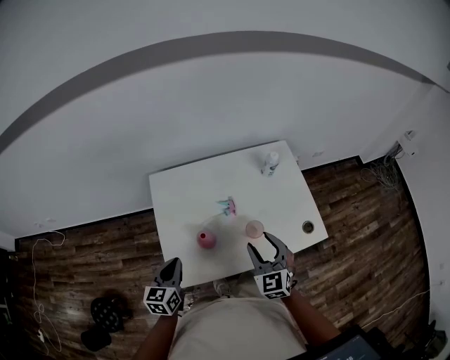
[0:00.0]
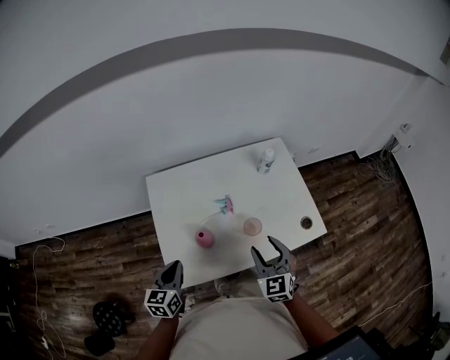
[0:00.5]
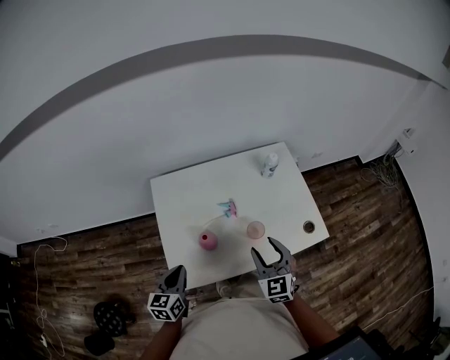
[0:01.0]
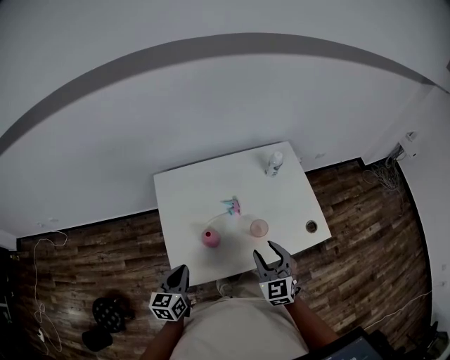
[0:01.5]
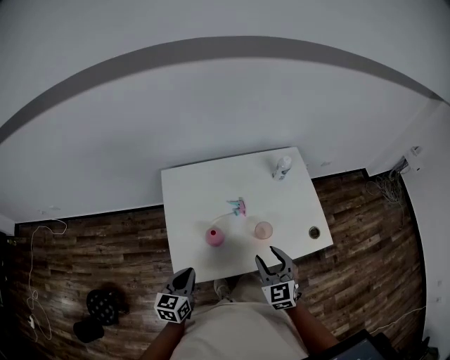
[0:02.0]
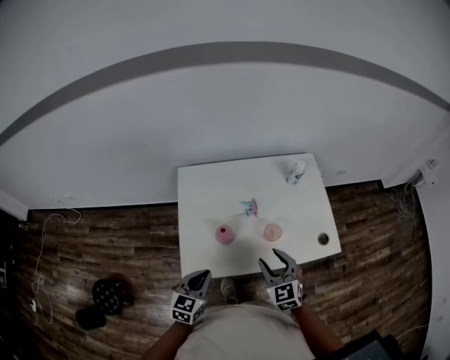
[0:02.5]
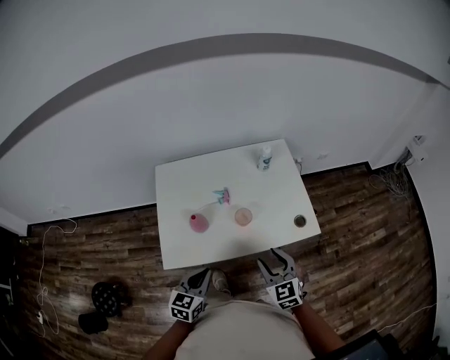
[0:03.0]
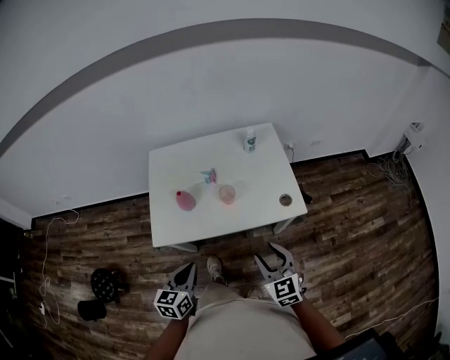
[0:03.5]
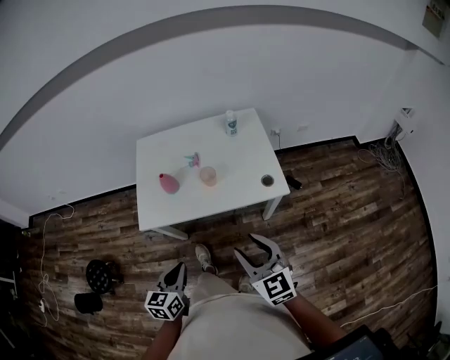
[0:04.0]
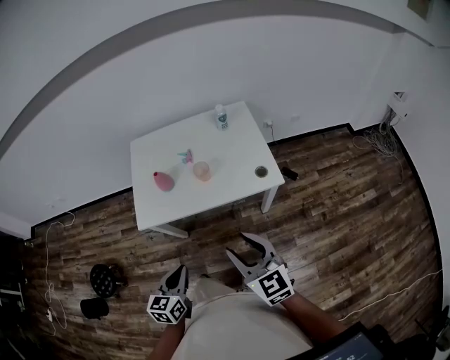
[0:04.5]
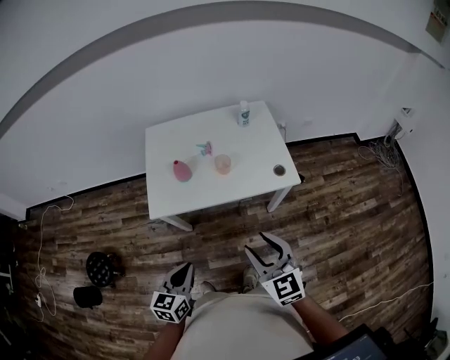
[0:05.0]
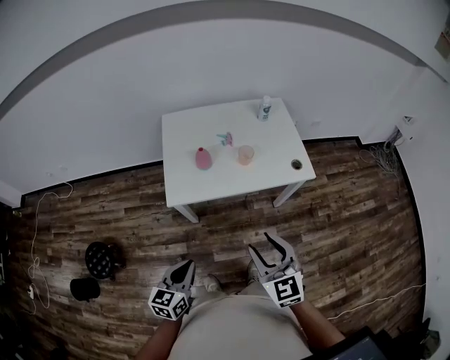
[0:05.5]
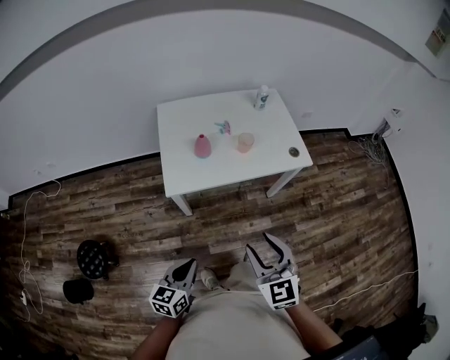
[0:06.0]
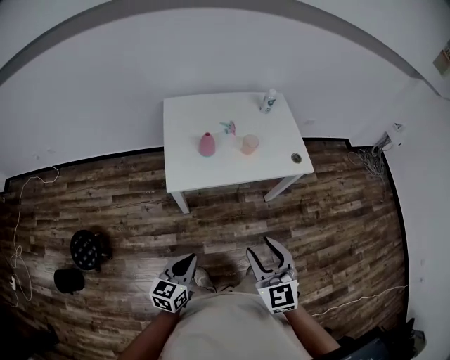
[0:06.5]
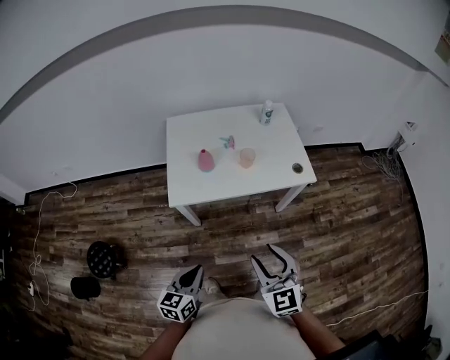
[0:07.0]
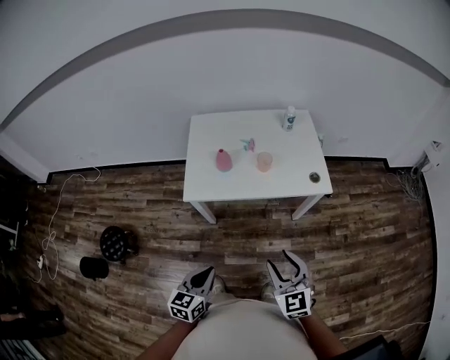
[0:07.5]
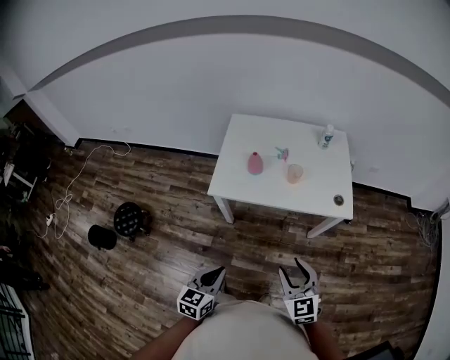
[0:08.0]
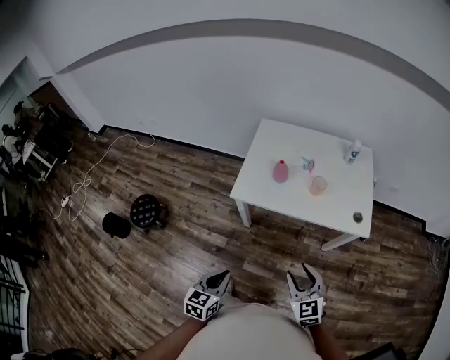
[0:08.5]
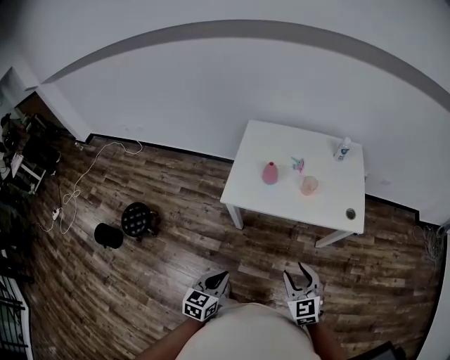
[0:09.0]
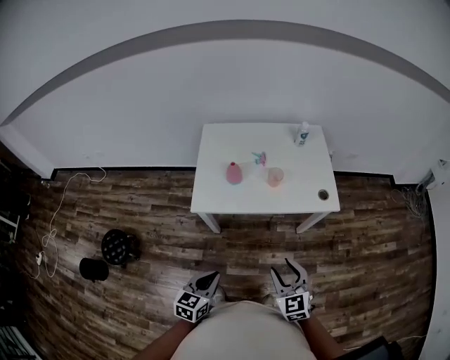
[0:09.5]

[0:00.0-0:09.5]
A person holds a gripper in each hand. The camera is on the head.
0:00.0 to 0:02.0: The left gripper moves backward, about 5 cm.
0:02.0 to 0:04.0: The grippers both shift backward and to the right by roughly 35 cm. The right gripper rotates some 20 degrees.
0:04.0 to 0:05.5: Both grippers travel together to the left and backward, some 20 cm.
0:05.5 to 0:07.5: The grippers both shift to the right by roughly 10 cm.
0:07.5 to 0:09.5: The right gripper shifts by about 5 cm.

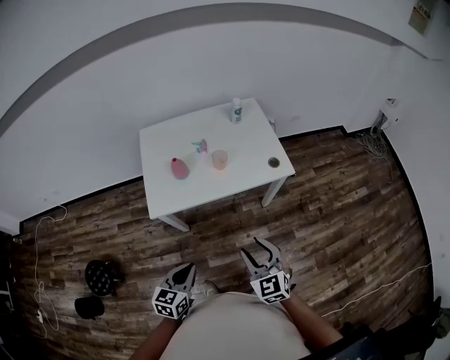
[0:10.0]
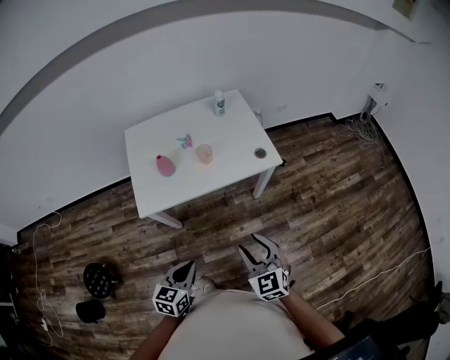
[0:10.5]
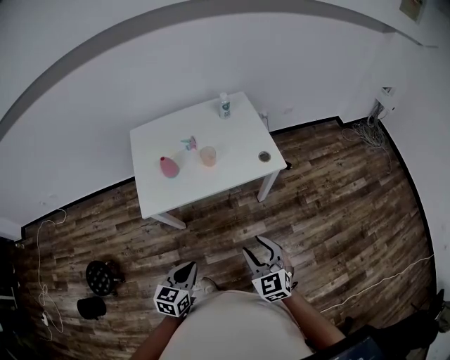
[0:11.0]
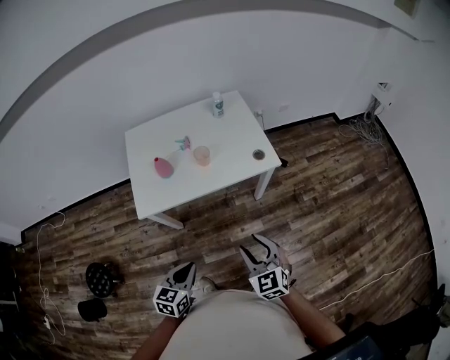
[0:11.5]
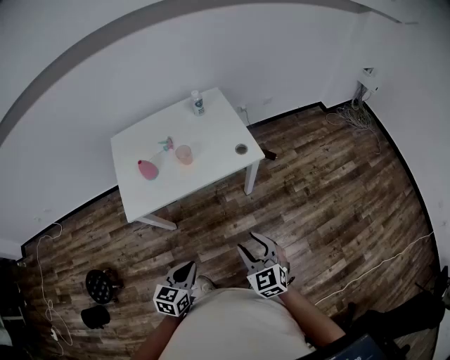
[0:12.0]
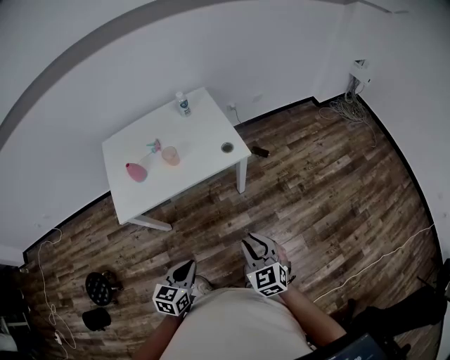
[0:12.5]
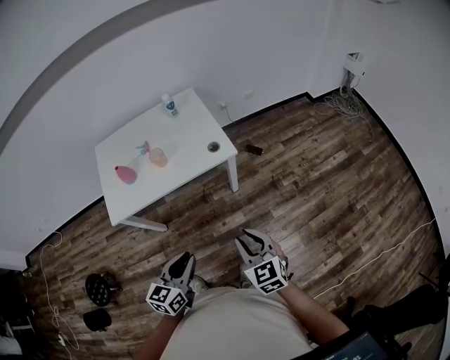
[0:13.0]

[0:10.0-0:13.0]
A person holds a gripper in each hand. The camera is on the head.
0:10.0 to 0:11.5: Both grippers move to the right, roughly 5 cm.
0:11.5 to 0:13.0: Both grippers travel together to the right, roughly 20 cm.

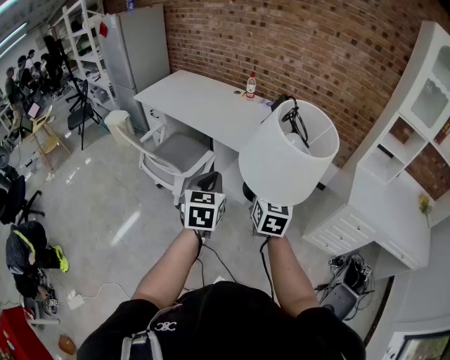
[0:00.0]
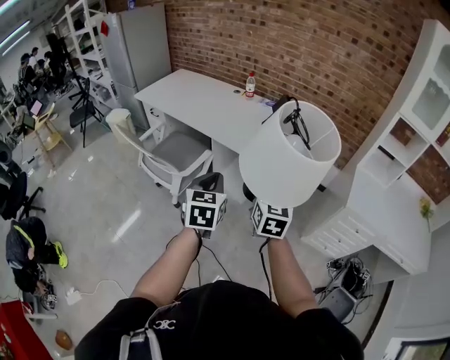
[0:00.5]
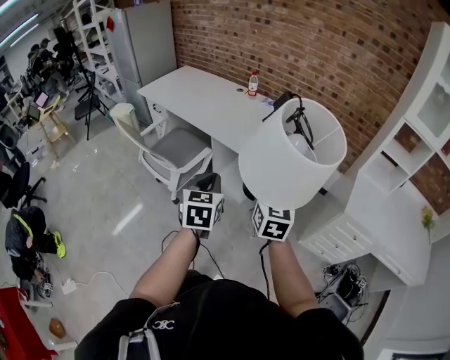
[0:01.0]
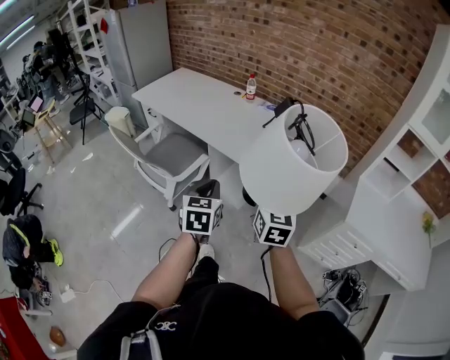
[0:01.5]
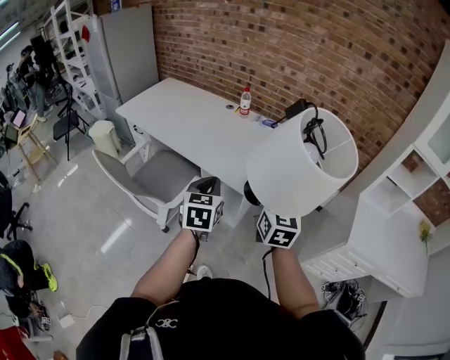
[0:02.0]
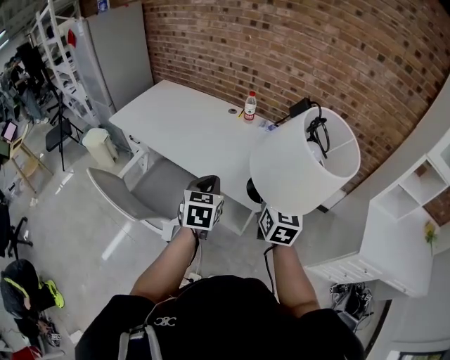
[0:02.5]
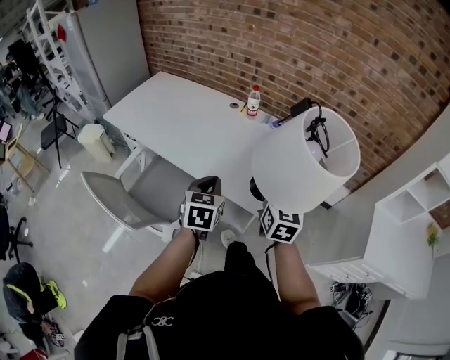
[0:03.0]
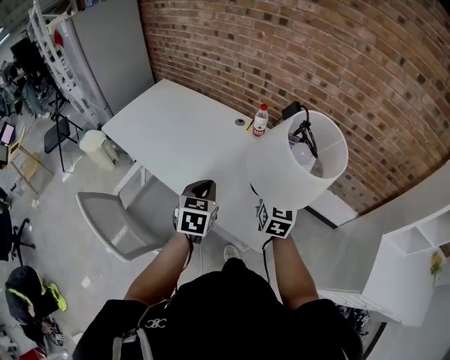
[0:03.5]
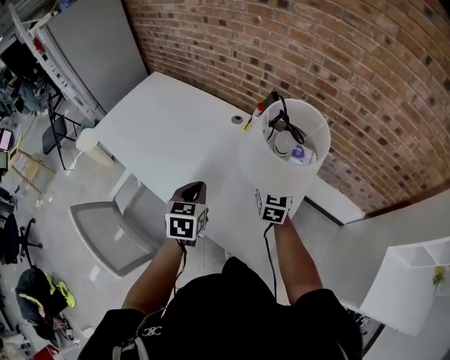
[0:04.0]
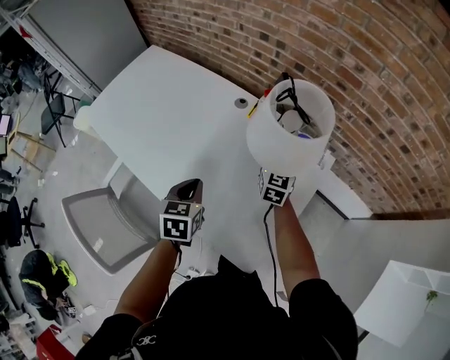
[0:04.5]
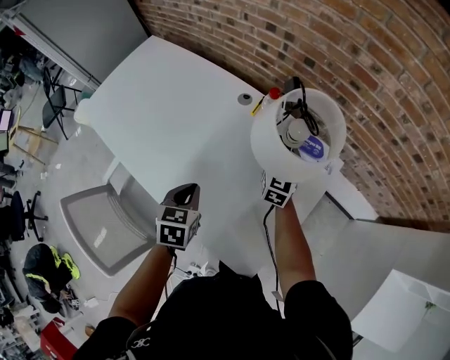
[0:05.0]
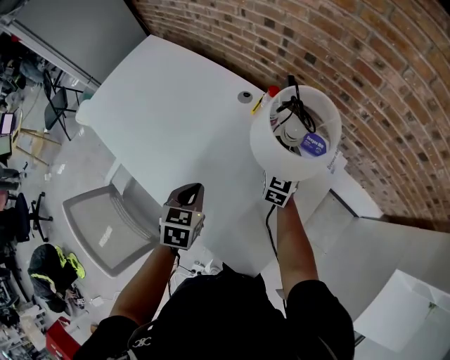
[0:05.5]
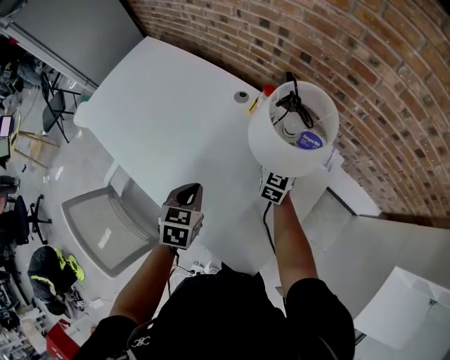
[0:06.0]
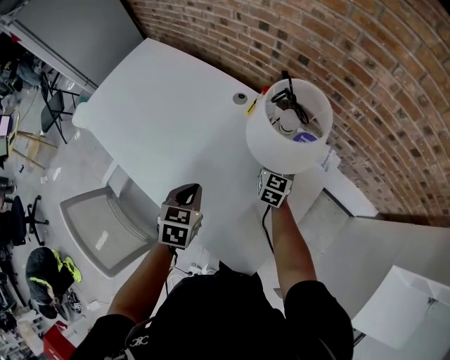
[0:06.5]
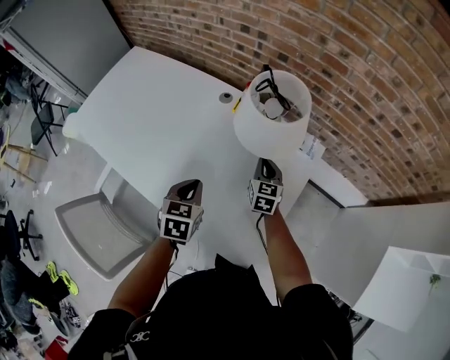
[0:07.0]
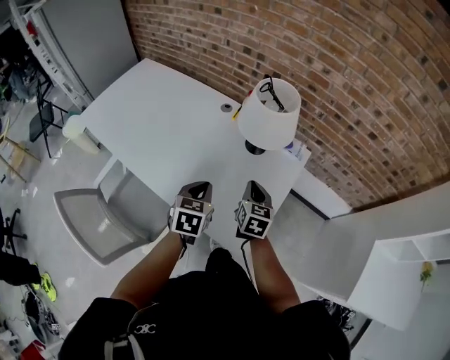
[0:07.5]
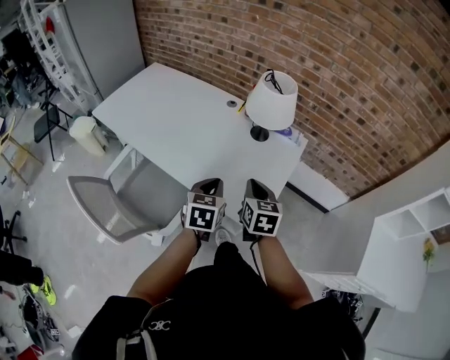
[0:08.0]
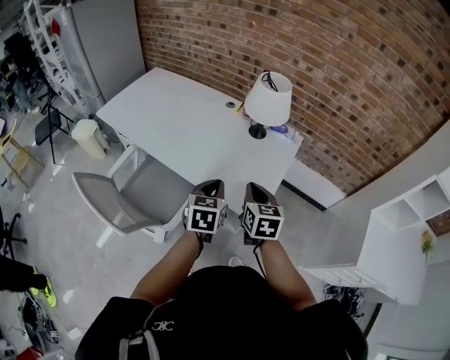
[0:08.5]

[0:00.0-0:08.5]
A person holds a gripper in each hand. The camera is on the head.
0:00.0 to 0:02.0: The grippers both shift forward by roughly 20 cm.
0:02.0 to 0:04.0: The two grippers go approximately 40 cm forward.
0:04.0 to 0:06.5: The right gripper travels downward and forward by approximately 20 cm; the left gripper goes some 10 cm downward and forward.
0:06.5 to 0:08.5: The left gripper heads backward and upward, covering some 25 cm, while the right gripper heads backward and upward, covering approximately 50 cm, and closes.

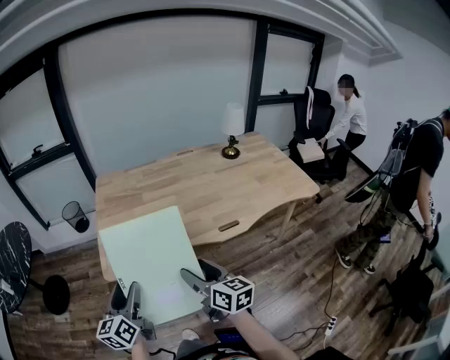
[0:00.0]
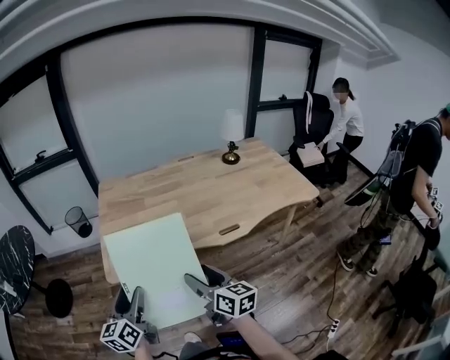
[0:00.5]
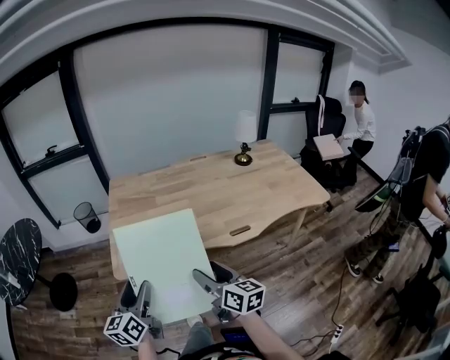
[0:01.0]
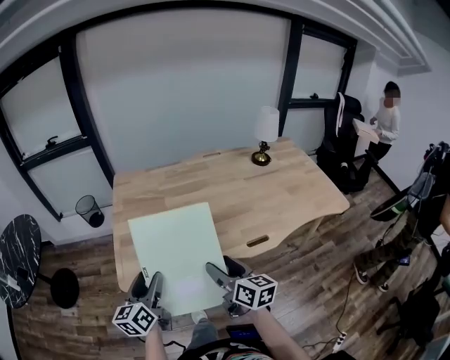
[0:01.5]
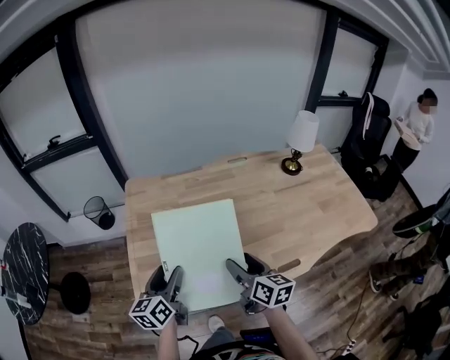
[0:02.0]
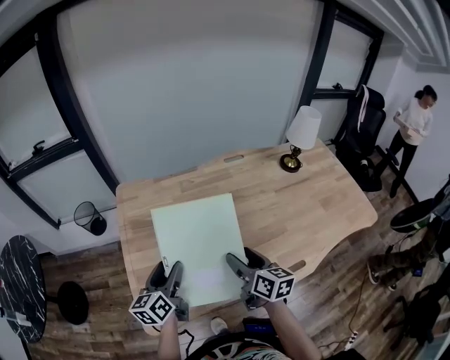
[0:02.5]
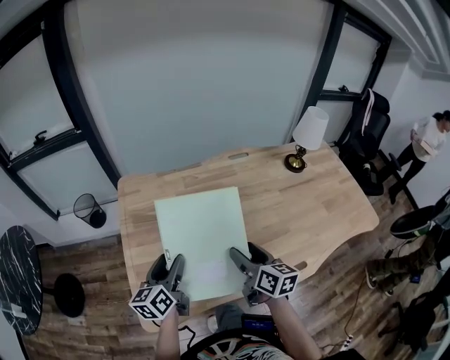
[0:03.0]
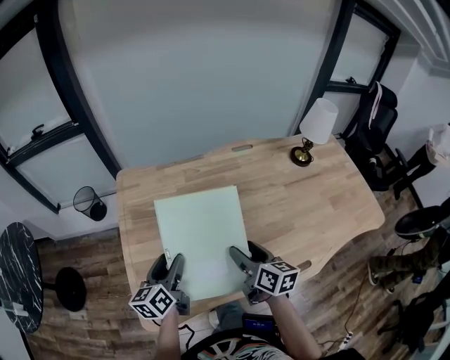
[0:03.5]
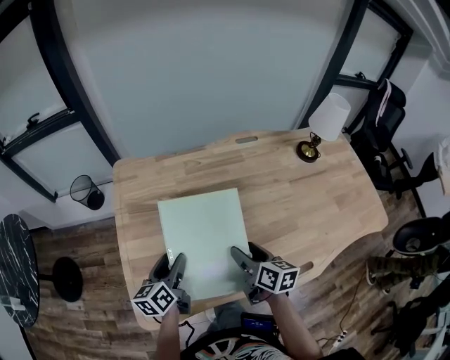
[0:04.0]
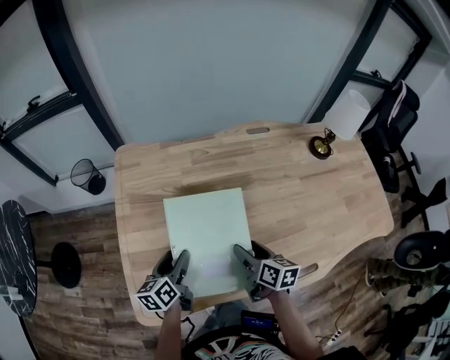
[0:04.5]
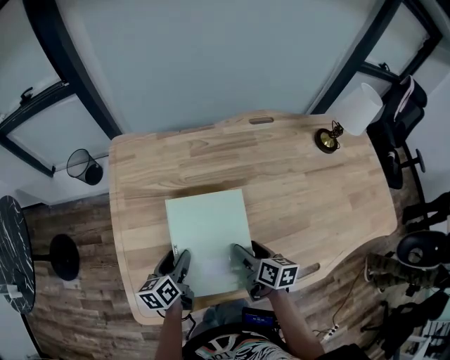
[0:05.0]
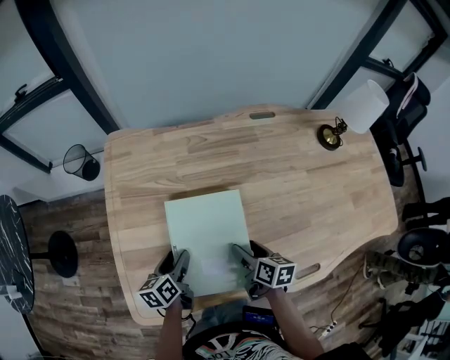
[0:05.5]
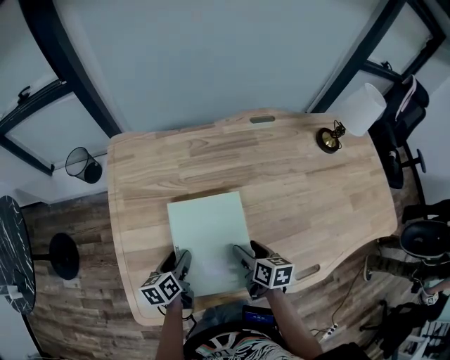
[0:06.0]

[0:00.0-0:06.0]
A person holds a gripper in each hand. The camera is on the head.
0:00.0 to 0:02.0: Both grippers travel together forward, about 30 cm.
0:02.0 to 0:04.0: The grippers both shift forward and downward by about 15 cm.
0:04.0 to 0:06.0: The two grippers go about 10 cm downward.
